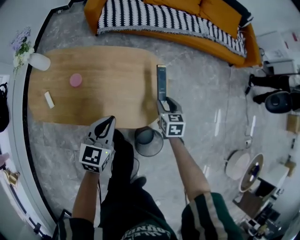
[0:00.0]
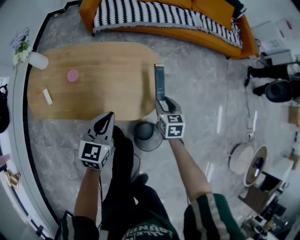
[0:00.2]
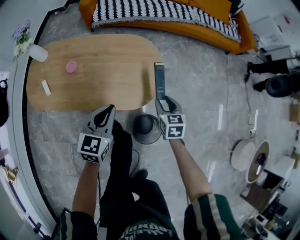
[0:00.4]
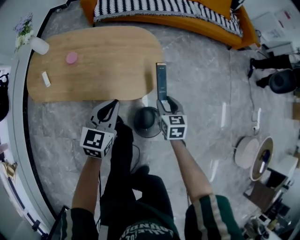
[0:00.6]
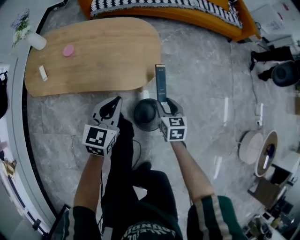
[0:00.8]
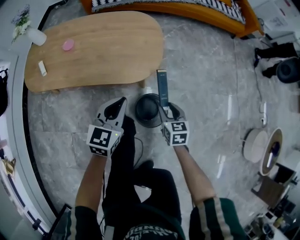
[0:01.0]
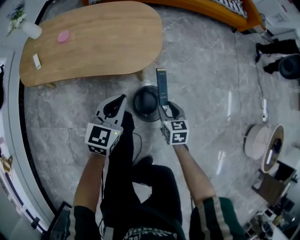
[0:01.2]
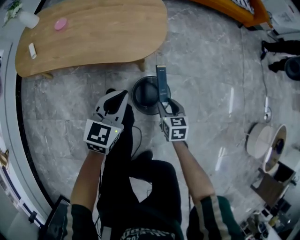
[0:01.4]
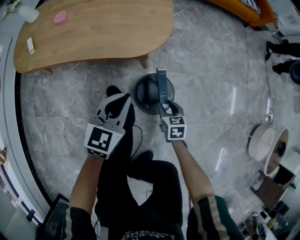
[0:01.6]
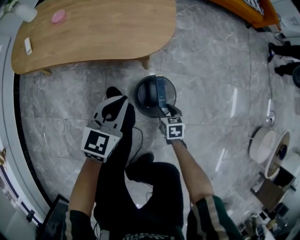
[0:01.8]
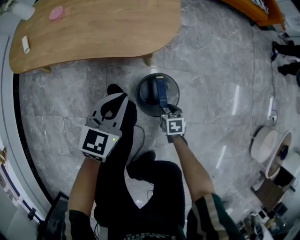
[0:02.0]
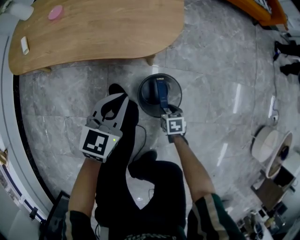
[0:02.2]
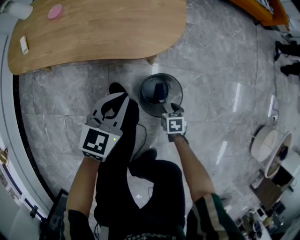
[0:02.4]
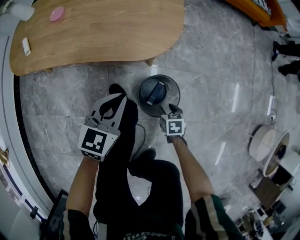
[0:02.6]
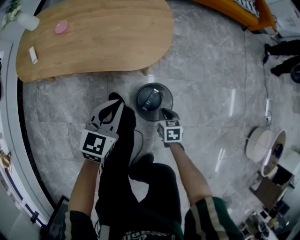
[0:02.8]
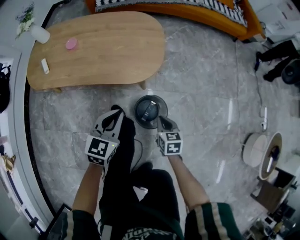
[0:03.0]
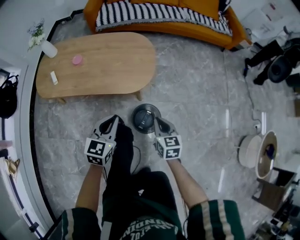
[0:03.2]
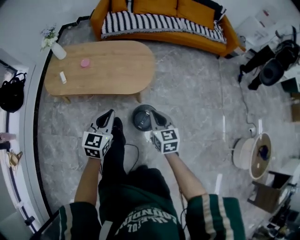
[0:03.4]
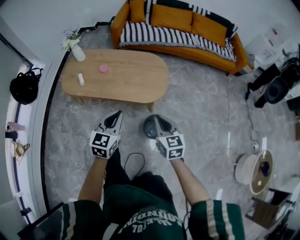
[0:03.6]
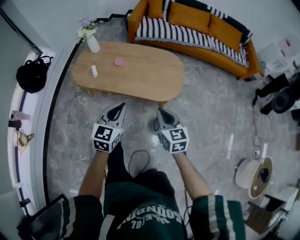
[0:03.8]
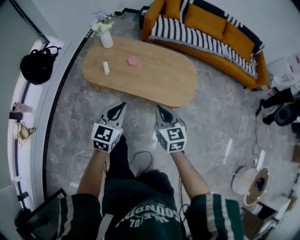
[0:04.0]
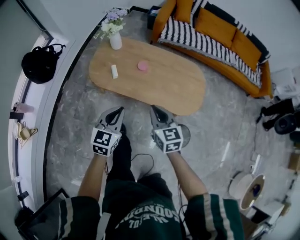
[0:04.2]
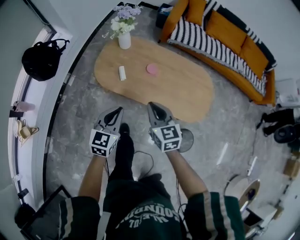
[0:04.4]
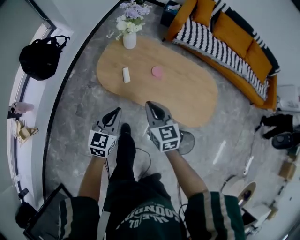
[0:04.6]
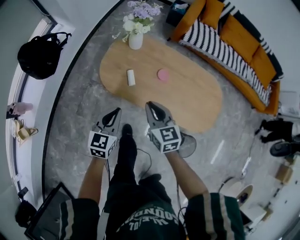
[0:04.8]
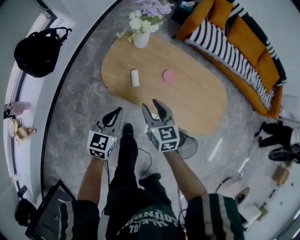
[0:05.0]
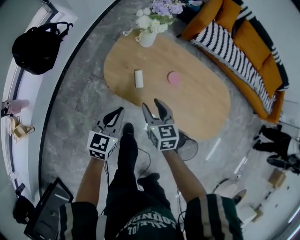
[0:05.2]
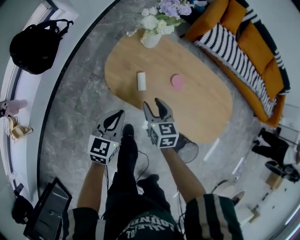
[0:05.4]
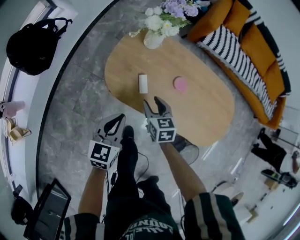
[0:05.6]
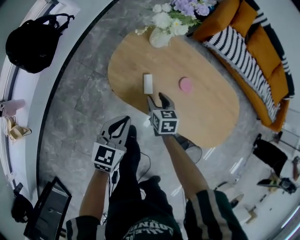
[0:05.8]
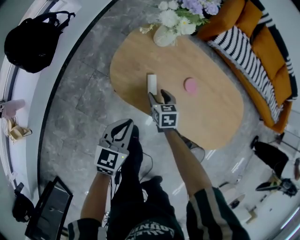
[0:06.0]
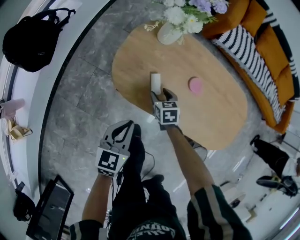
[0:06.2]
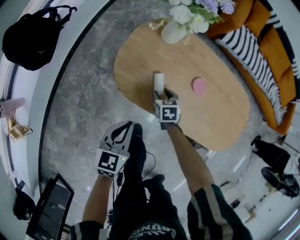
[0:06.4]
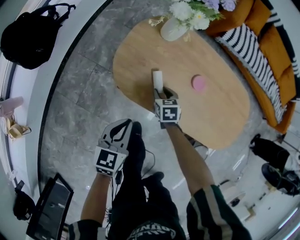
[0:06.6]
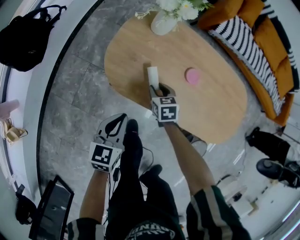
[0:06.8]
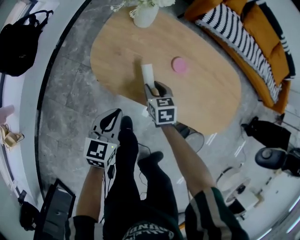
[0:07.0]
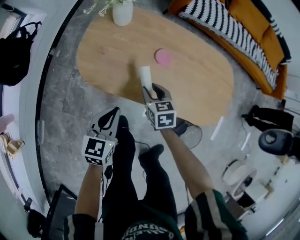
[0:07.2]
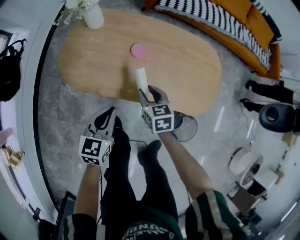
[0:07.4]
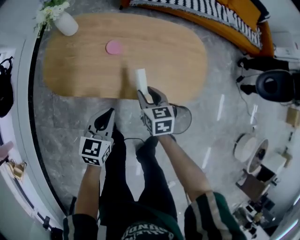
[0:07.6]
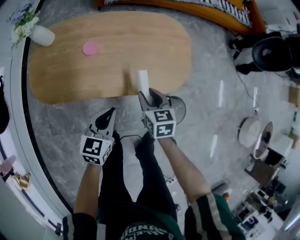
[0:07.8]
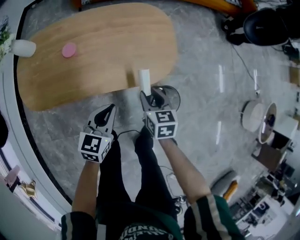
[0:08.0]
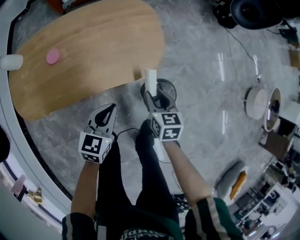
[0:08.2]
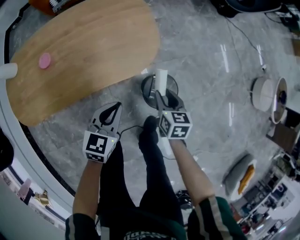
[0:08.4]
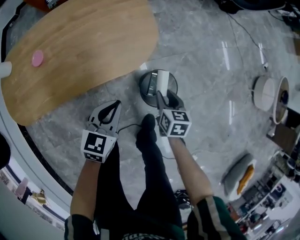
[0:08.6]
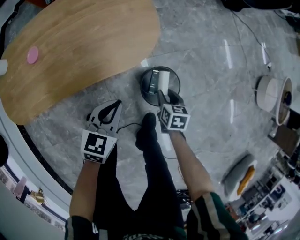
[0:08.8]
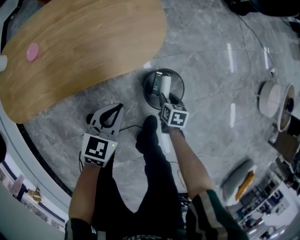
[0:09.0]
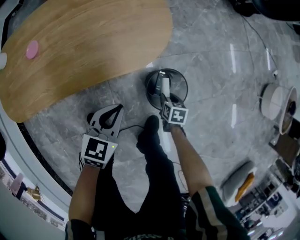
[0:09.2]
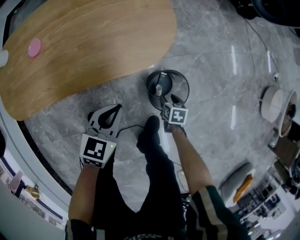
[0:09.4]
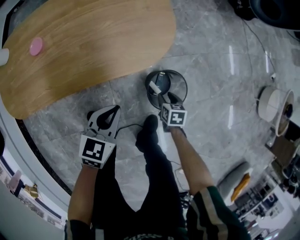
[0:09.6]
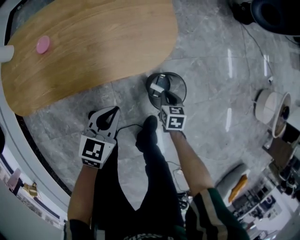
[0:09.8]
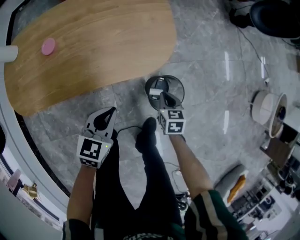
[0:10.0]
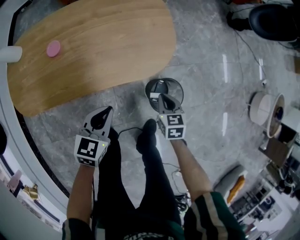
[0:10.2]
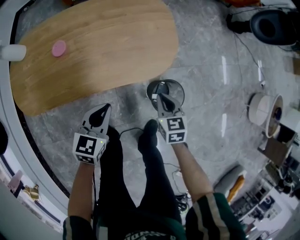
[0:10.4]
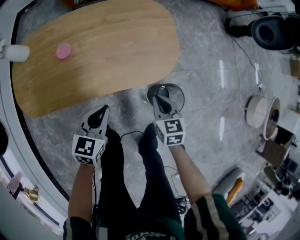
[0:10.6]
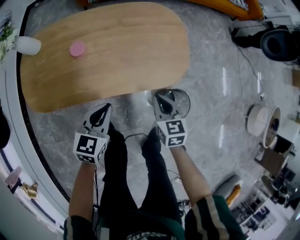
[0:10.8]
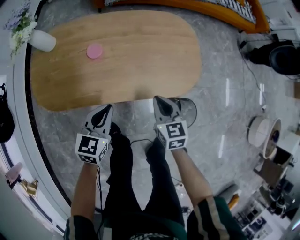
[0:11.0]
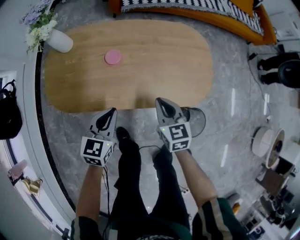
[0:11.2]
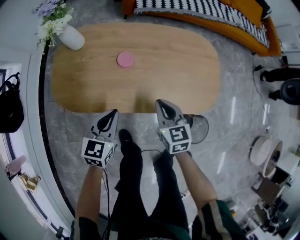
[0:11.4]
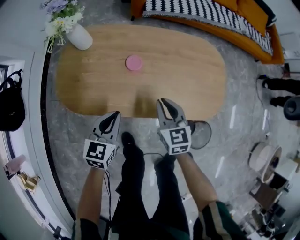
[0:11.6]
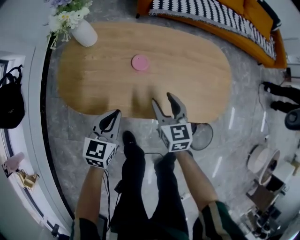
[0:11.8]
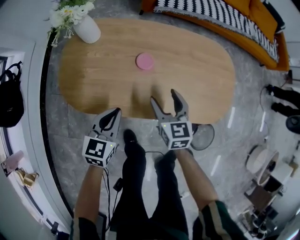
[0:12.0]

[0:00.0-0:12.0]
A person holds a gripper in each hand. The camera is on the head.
0:00.0 to 0:01.6: The left gripper is displaced backward, downward and to the right by some 30 cm. The right gripper goes some 40 cm backward and downward.
0:01.6 to 0:03.0: The left gripper moves upward, some 5 cm; the right gripper heads upward, covering some 10 cm, and closes its fingers.
0:03.0 to 0:04.4: Both grippers are carried to the left, about 50 cm. The left gripper heads upward, covering some 20 cm, and changes its angle by roughly 20 degrees, while the right gripper is displaced upward by some 35 cm, and turns by about 40 degrees.
0:04.4 to 0:06.0: The left gripper is displaced downward, forward and to the left by approximately 25 cm. The right gripper goes roughly 40 cm downward, forward and to the left, angles its fingers downward, by roughly 30 degrees, and opens its fingers.
0:06.0 to 0:07.6: The right gripper heads to the right and backward, covering about 30 cm, and swivels roughly 20 degrees, while the left gripper goes some 25 cm to the right.
0:07.6 to 0:09.0: The right gripper ends up some 50 cm from where it was, and rotates roughly 40 degrees, while the left gripper moves approximately 30 cm, and turns by approximately 30 degrees.
0:09.0 to 0:10.4: The right gripper is displaced upward and to the left by about 25 cm, swivels roughly 30 degrees, and closes. The left gripper shifts some 15 cm to the left and upward.
0:10.4 to 0:12.0: The right gripper shifts some 35 cm to the left and forward, changes its angle by about 20 degrees, and opens up; the left gripper shifts roughly 30 cm to the left, and rotates about 20 degrees.

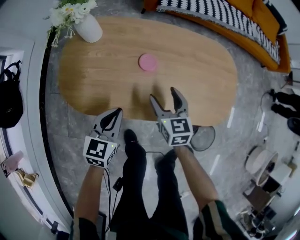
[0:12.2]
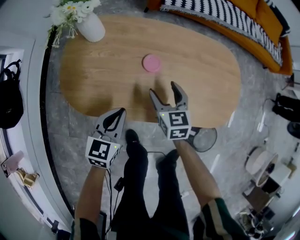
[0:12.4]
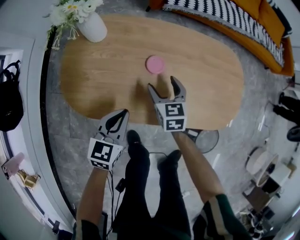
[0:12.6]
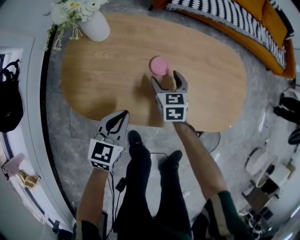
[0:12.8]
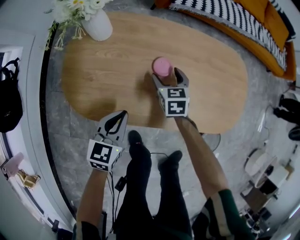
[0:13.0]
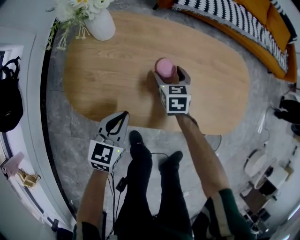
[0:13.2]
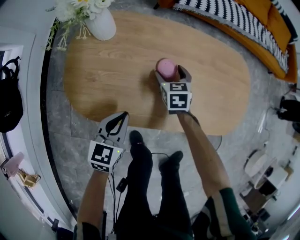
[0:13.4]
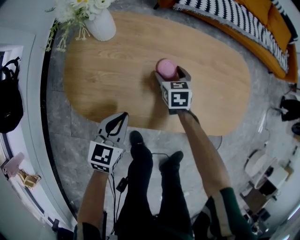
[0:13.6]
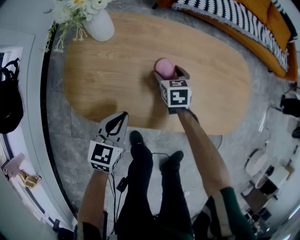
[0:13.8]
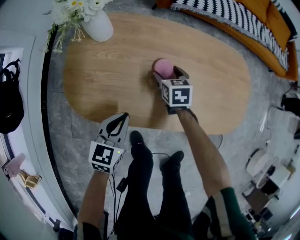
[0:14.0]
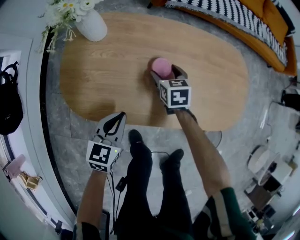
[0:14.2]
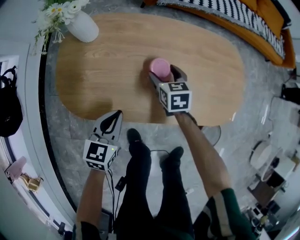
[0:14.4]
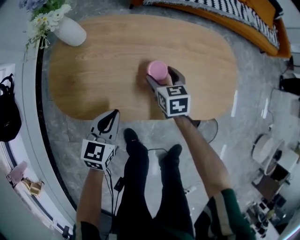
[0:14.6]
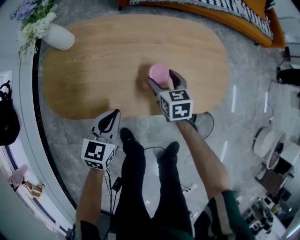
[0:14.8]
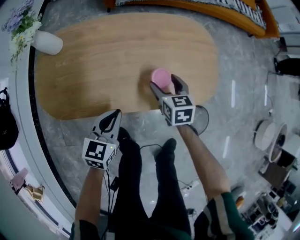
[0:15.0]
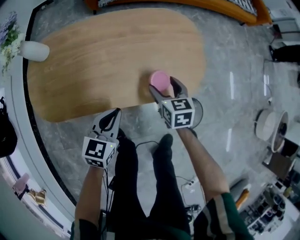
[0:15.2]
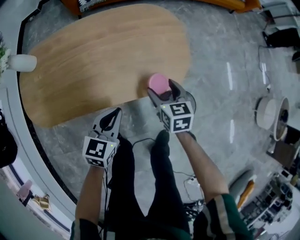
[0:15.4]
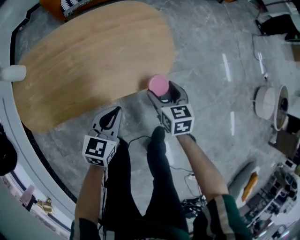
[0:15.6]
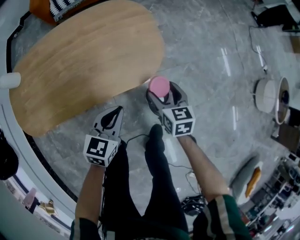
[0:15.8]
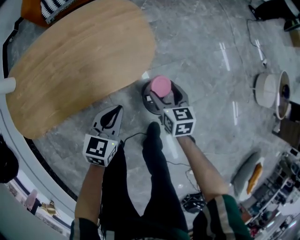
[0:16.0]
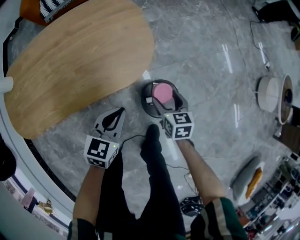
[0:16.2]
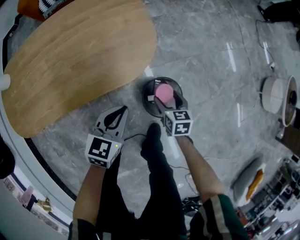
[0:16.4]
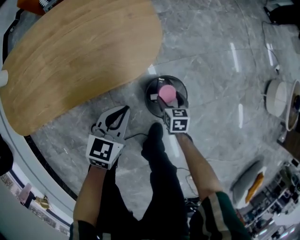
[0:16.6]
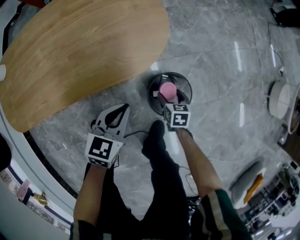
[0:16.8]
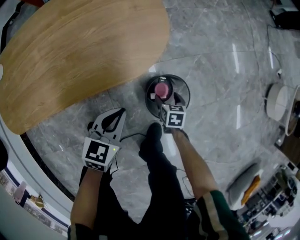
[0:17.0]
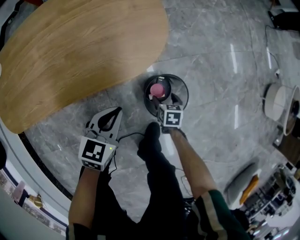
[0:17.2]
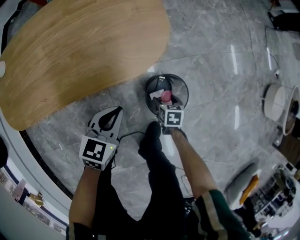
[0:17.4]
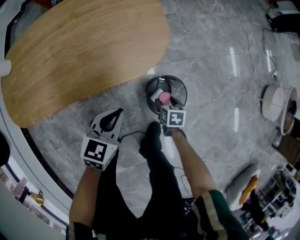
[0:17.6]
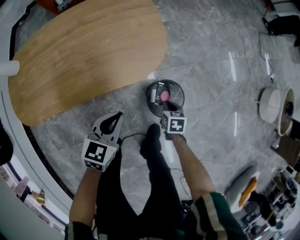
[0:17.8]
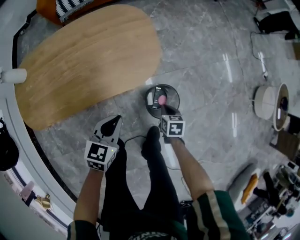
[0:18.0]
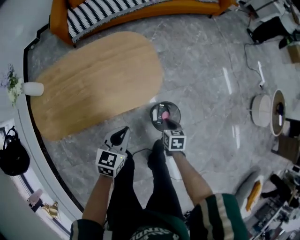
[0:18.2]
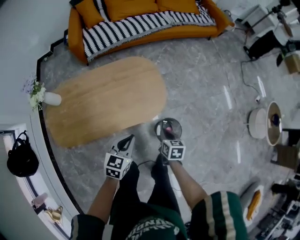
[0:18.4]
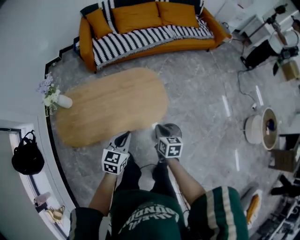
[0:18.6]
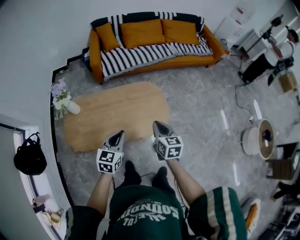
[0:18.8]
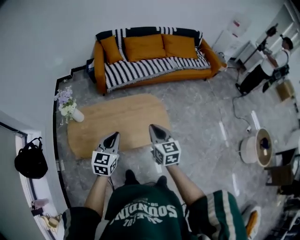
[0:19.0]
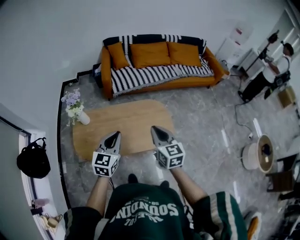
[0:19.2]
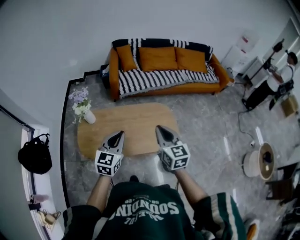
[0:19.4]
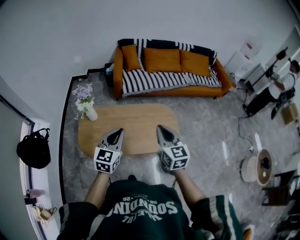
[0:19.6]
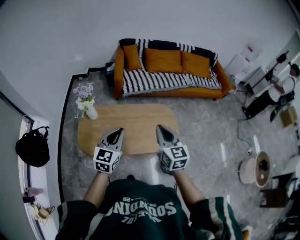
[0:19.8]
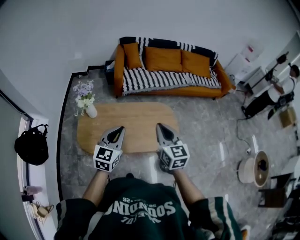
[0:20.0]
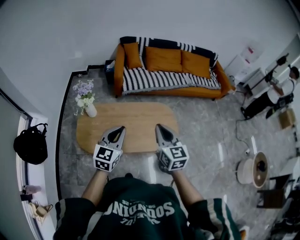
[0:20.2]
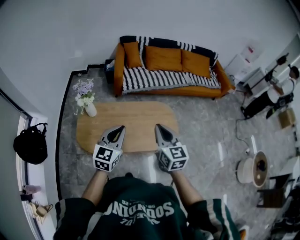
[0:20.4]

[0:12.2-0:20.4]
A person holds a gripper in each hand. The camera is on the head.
0:12.2 to 0:13.8: The right gripper goes approximately 20 cm downward, forward and to the left. The left gripper changes place by approximately 5 cm.
0:13.8 to 0:15.4: The right gripper goes roughly 40 cm to the right and backward, and turns by about 20 degrees. The left gripper goes approximately 30 cm to the right, and changes its angle by about 20 degrees.
0:15.4 to 0:17.2: The left gripper travels to the right and downward by roughly 20 cm. The right gripper is displaced downward and to the right by some 35 cm, and swivels roughly 30 degrees.
0:17.2 to 0:18.8: The left gripper goes approximately 50 cm upward and to the left, and swivels about 20 degrees. Meanwhile the right gripper moves upward, roughly 60 cm, points its fingers approximately 40 degrees further upward, and closes.
0:18.8 to 0:20.4: The left gripper travels to the left and upward by roughly 15 cm; the right gripper heads upward and to the left, covering about 20 cm, and swivels roughly 20 degrees.

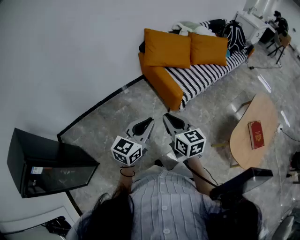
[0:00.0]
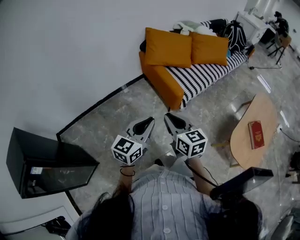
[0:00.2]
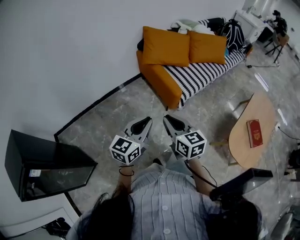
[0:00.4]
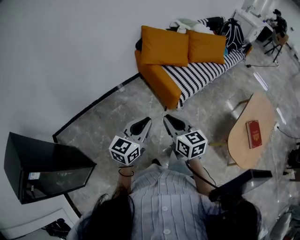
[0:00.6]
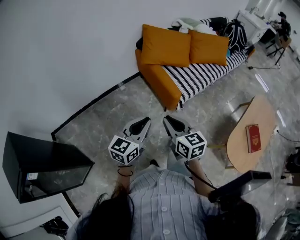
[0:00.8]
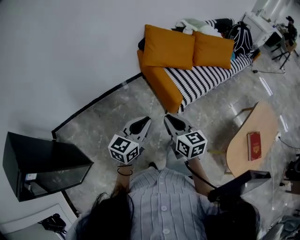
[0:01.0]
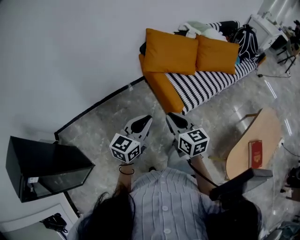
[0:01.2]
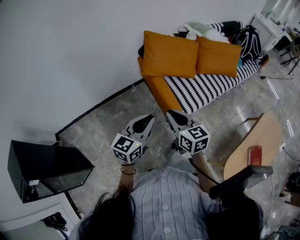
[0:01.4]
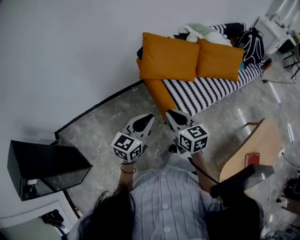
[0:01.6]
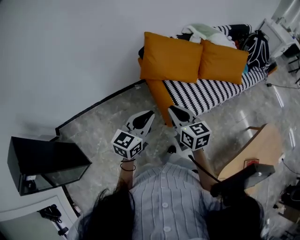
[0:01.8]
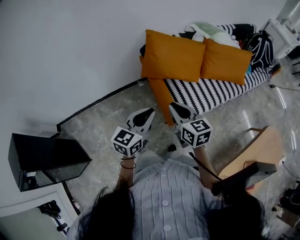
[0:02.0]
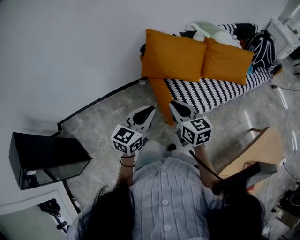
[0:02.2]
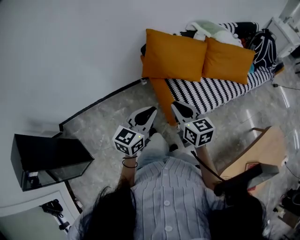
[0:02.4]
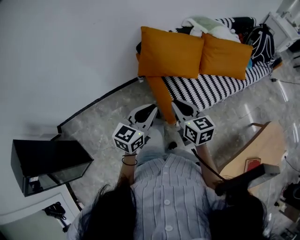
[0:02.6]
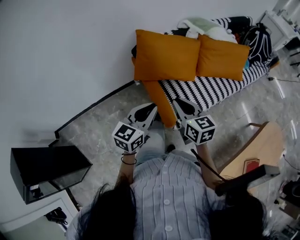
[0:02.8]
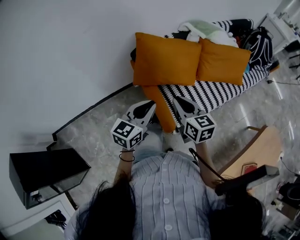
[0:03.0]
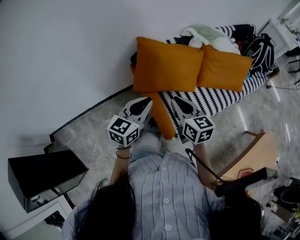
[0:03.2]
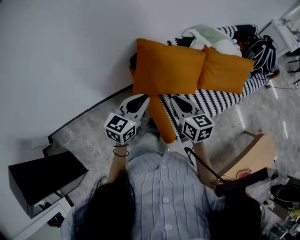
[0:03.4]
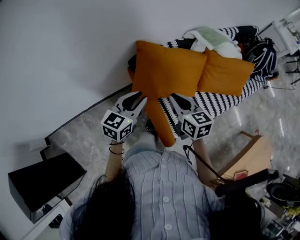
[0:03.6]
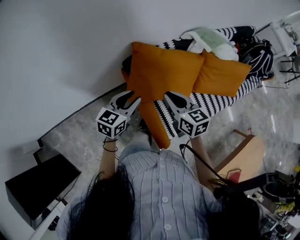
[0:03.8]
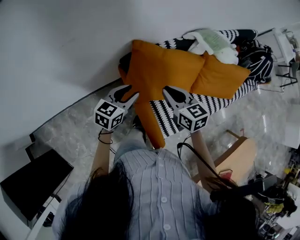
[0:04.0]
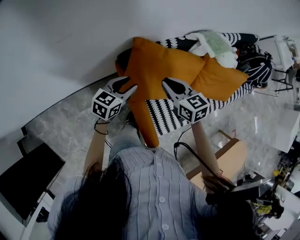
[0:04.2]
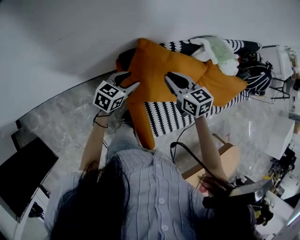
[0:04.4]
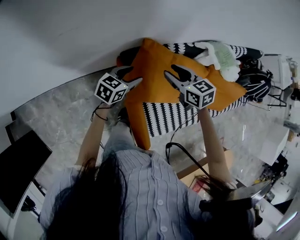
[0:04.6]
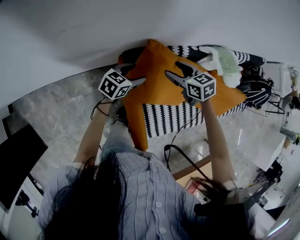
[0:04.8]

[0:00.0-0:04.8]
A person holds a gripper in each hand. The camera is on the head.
0:00.0 to 0:01.6: The two grippers go about 25 cm forward.
0:01.6 to 0:03.2: Both grippers move forward, some 25 cm.
0:03.2 to 0:04.8: The right gripper moves forward, about 35 cm, turns by some 40 degrees, and opens. The left gripper goes approximately 40 cm forward and downward, turns by about 20 degrees, and opens its fingers.
